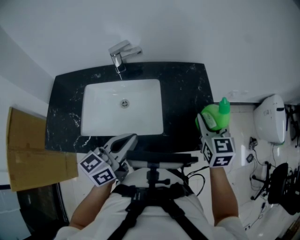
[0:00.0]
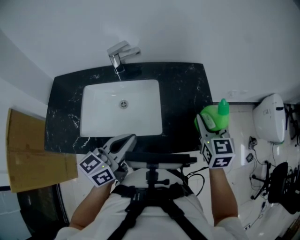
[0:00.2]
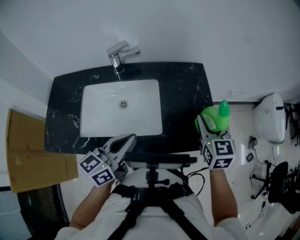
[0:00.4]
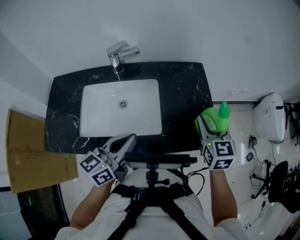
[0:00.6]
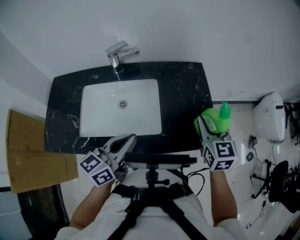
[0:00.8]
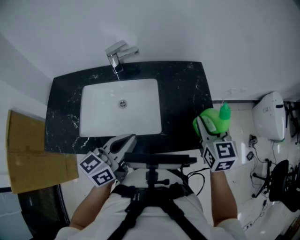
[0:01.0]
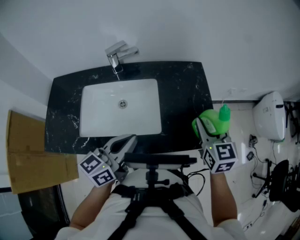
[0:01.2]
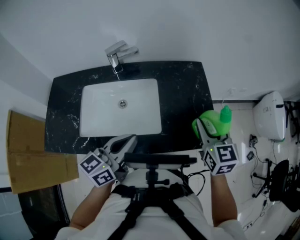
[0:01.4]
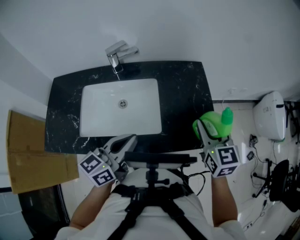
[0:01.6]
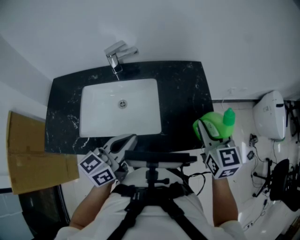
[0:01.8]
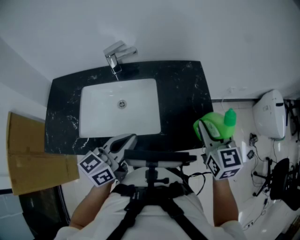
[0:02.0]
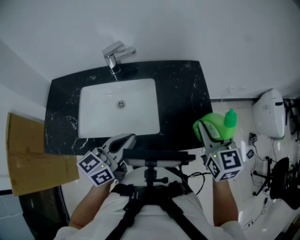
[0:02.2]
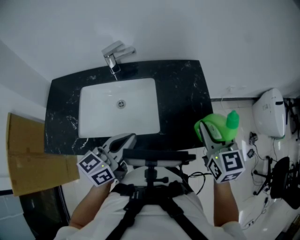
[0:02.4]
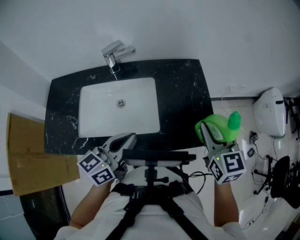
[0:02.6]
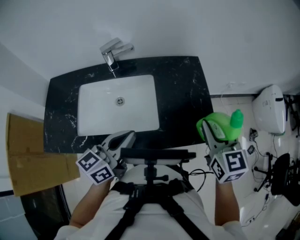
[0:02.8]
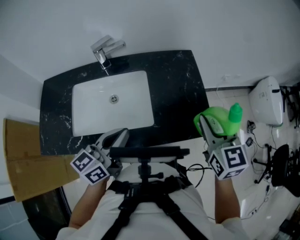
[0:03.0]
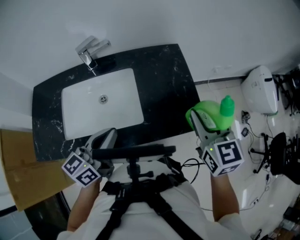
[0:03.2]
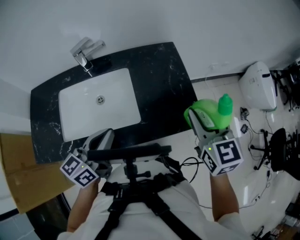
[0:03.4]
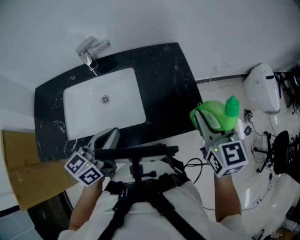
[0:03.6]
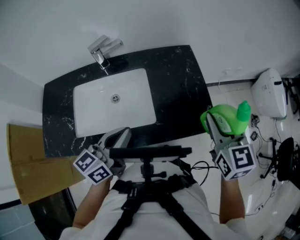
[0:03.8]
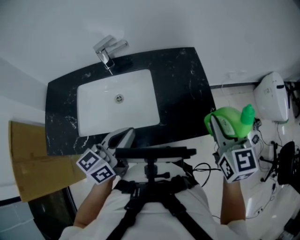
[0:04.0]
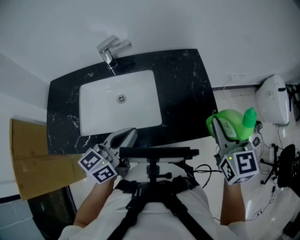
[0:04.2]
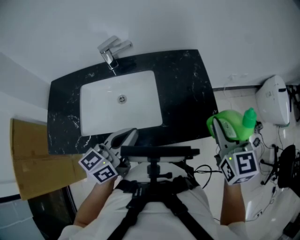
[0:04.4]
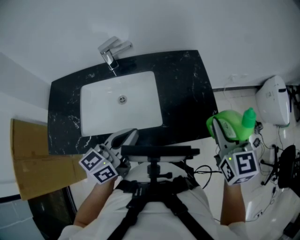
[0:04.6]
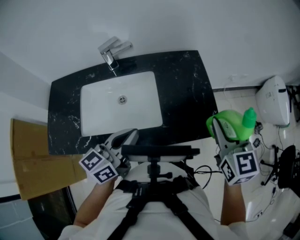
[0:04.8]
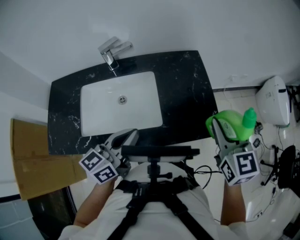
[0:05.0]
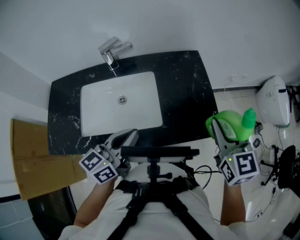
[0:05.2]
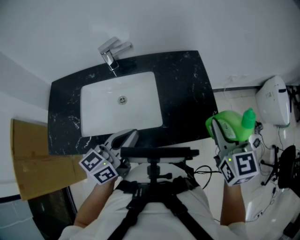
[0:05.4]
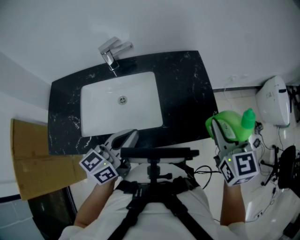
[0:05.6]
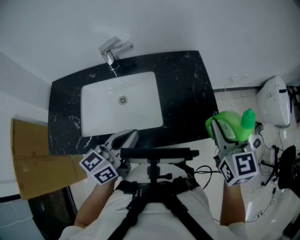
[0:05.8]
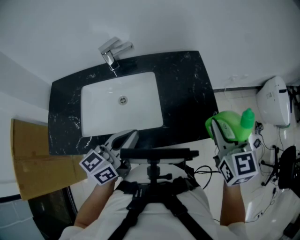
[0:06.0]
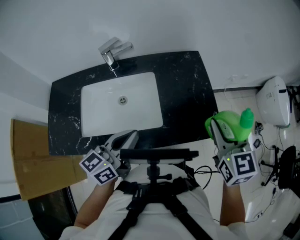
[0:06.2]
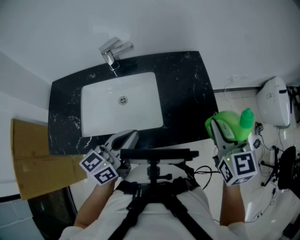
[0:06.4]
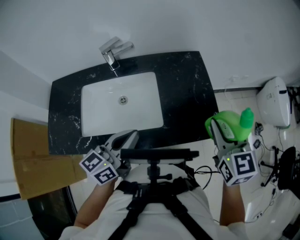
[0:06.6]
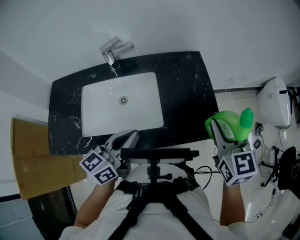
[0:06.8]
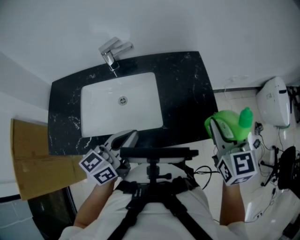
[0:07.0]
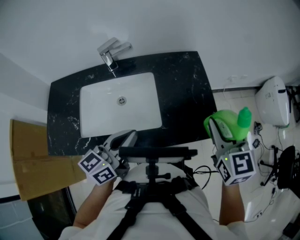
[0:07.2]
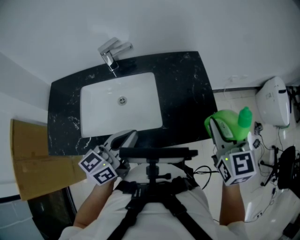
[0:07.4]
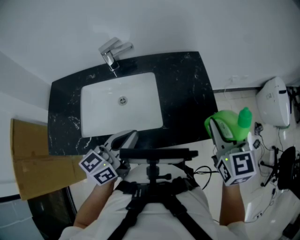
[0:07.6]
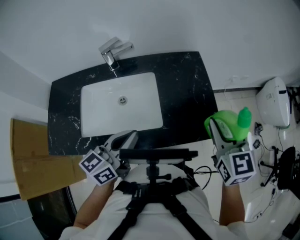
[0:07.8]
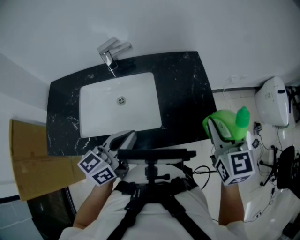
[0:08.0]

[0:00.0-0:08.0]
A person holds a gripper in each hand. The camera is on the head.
0:00.0 to 0:01.6: The grippers move only a little.
0:01.6 to 0:03.2: The right gripper ends up some 5 cm from where it was.
0:03.2 to 0:04.8: The grippers move only a little.
0:04.8 to 0:08.0: Neither gripper changes place.

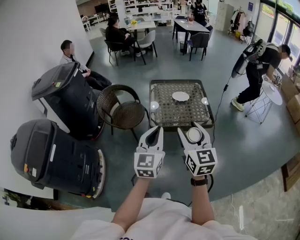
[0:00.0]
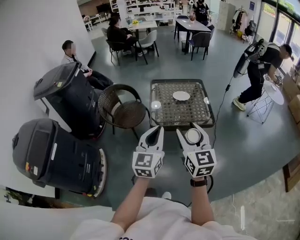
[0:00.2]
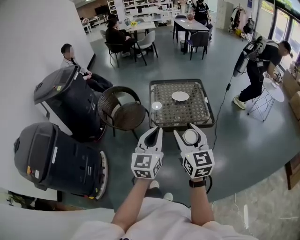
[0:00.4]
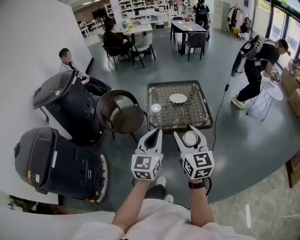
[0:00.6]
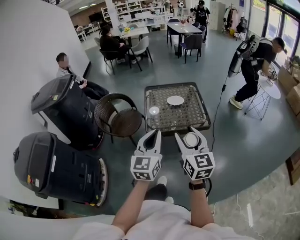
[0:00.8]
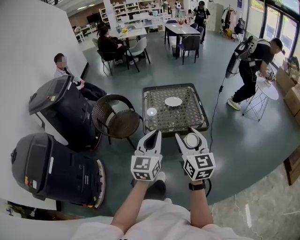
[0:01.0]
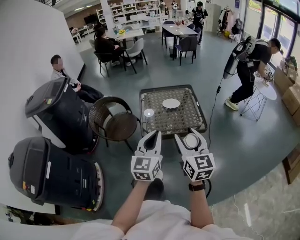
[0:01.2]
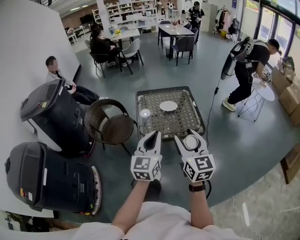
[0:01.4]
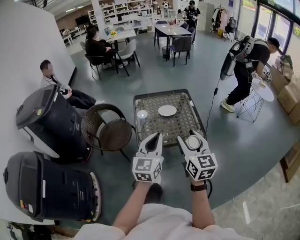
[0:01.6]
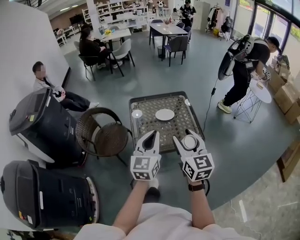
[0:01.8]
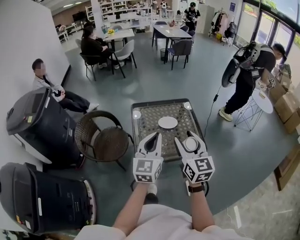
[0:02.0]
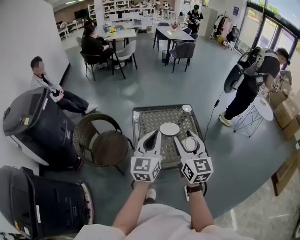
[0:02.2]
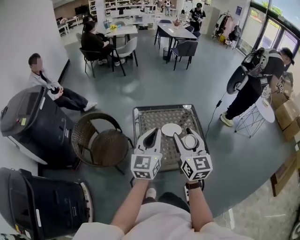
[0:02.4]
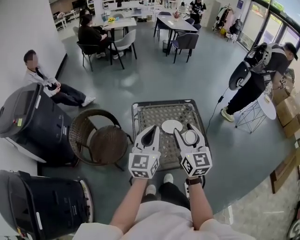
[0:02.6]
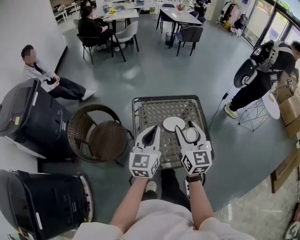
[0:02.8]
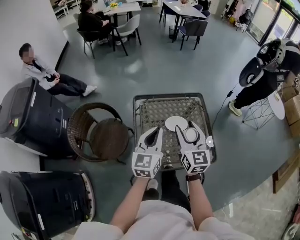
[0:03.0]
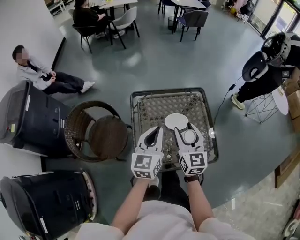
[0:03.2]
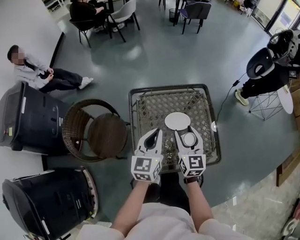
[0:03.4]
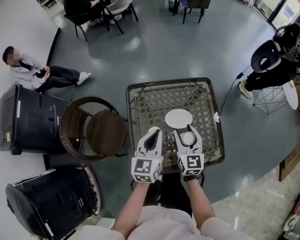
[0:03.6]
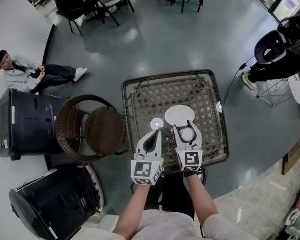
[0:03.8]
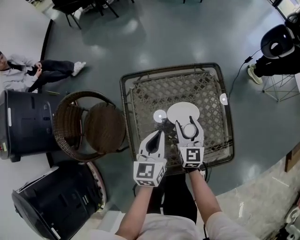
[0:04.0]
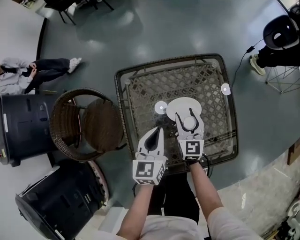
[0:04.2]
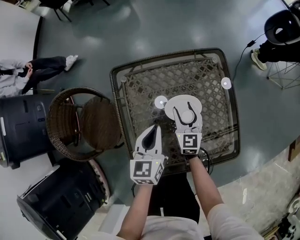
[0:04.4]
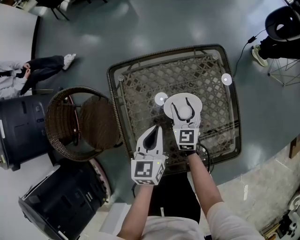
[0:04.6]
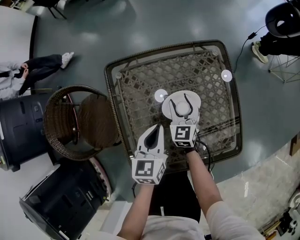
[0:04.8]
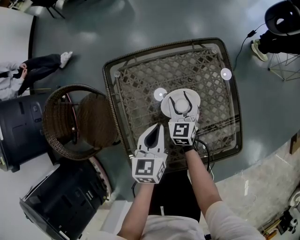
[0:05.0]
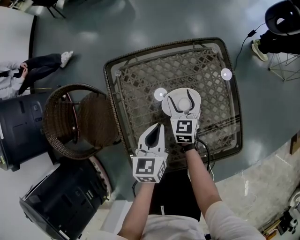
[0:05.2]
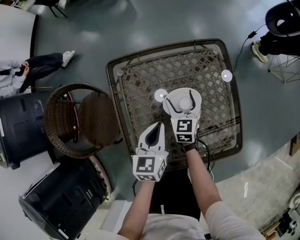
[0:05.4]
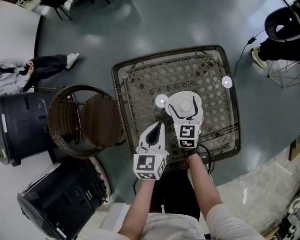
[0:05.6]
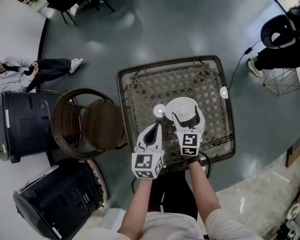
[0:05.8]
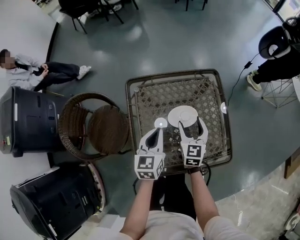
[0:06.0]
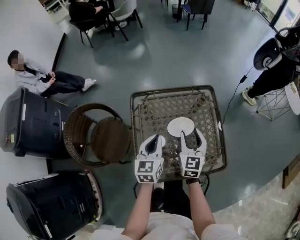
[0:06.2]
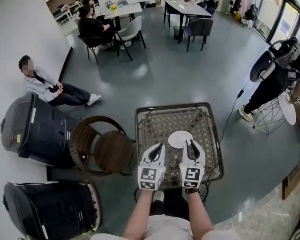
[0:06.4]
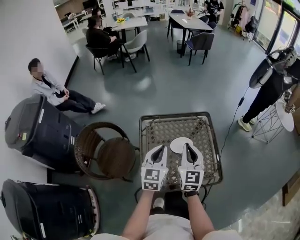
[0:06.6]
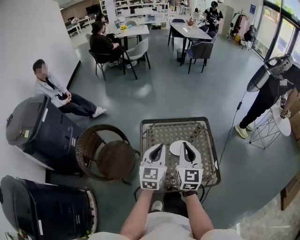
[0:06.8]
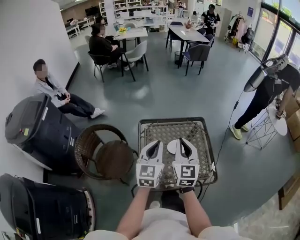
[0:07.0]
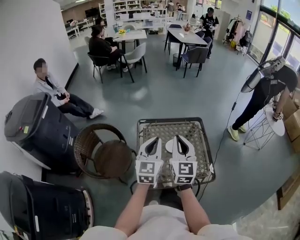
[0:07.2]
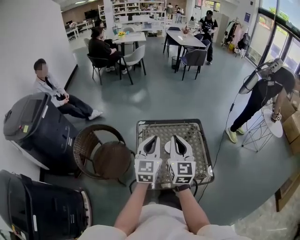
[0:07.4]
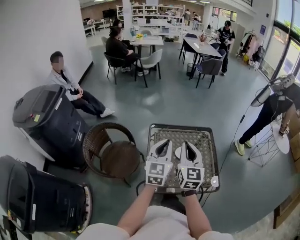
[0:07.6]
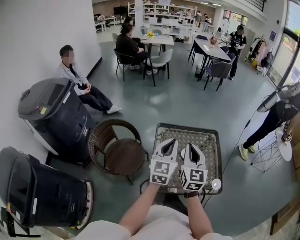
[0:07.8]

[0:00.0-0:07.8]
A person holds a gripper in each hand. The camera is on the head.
0:00.0 to 0:01.6: The grippers both shift forward and to the right by approximately 15 cm.
0:01.6 to 0:03.2: The two grippers go roughly 35 cm forward.
0:03.2 to 0:04.6: The right gripper travels downward and forward by approximately 35 cm; the left gripper moves downward, about 25 cm, and rotates about 20 degrees.
0:04.6 to 0:06.2: The right gripper moves upward and backward, roughly 20 cm, and opens, then closes once more. The left gripper is displaced upward by about 10 cm.
0:06.2 to 0:07.8: The right gripper goes about 30 cm upward, to the left and backward, and closes up. Meanwhile the left gripper goes some 20 cm upward and backward, and rotates roughly 20 degrees.

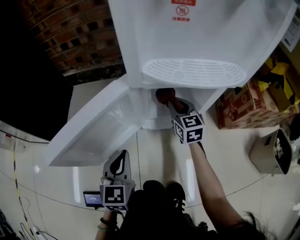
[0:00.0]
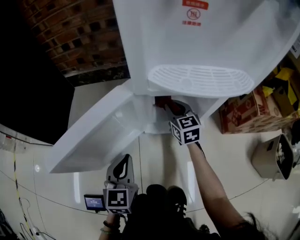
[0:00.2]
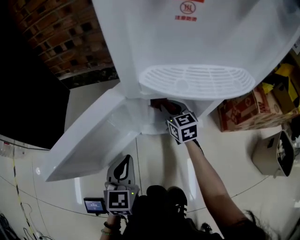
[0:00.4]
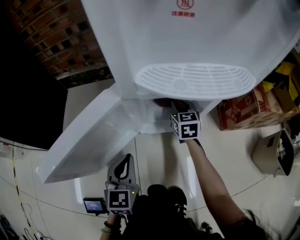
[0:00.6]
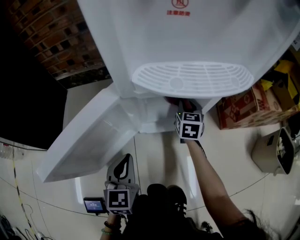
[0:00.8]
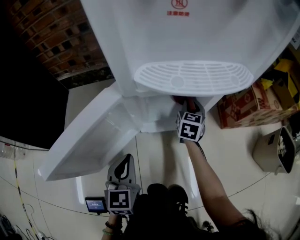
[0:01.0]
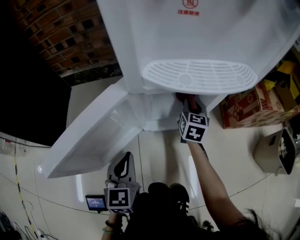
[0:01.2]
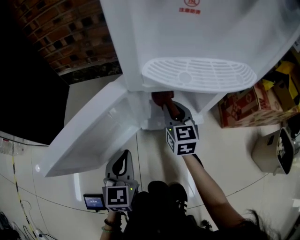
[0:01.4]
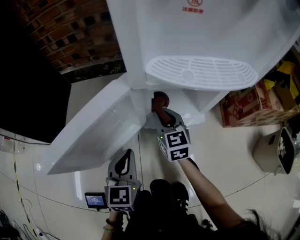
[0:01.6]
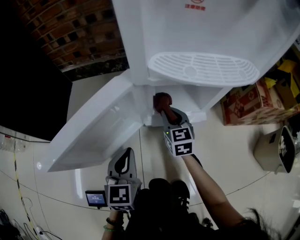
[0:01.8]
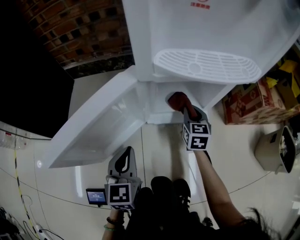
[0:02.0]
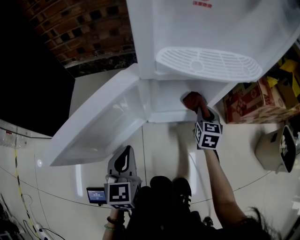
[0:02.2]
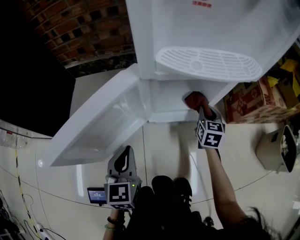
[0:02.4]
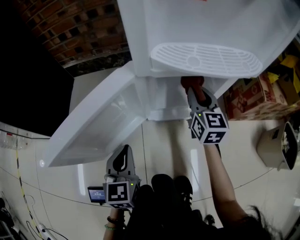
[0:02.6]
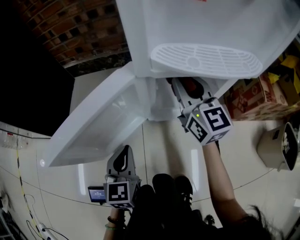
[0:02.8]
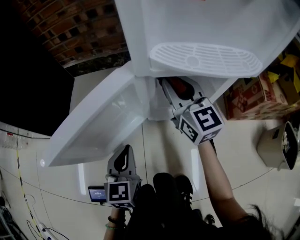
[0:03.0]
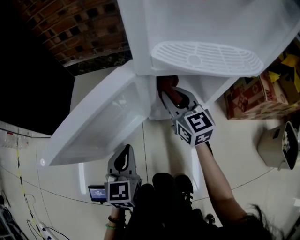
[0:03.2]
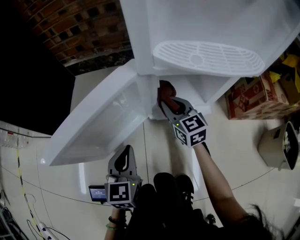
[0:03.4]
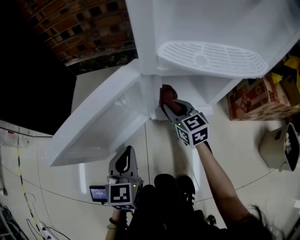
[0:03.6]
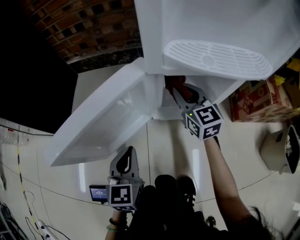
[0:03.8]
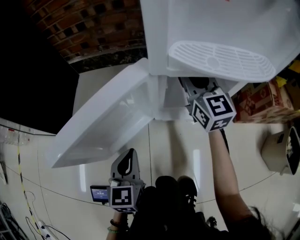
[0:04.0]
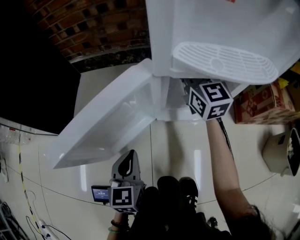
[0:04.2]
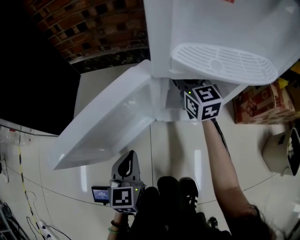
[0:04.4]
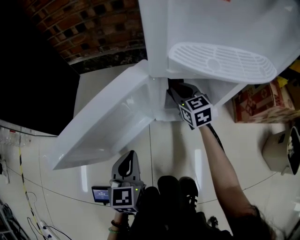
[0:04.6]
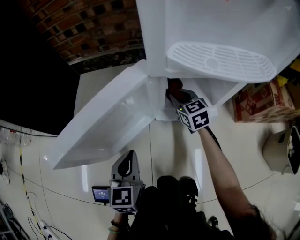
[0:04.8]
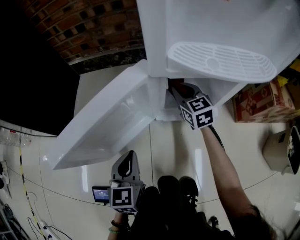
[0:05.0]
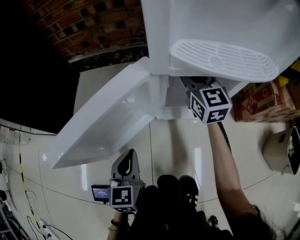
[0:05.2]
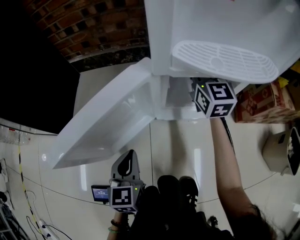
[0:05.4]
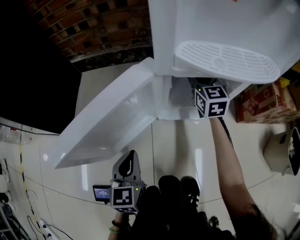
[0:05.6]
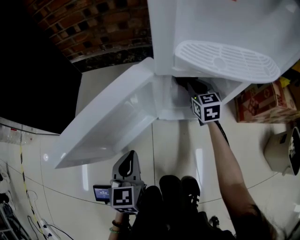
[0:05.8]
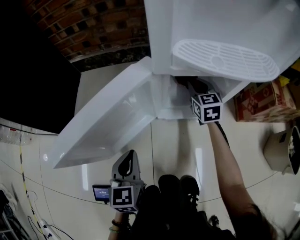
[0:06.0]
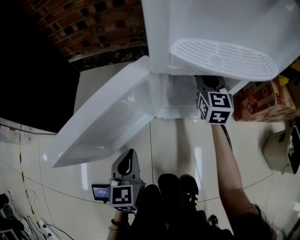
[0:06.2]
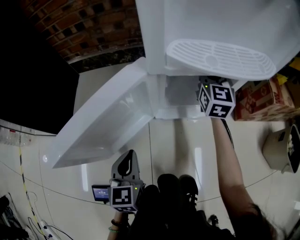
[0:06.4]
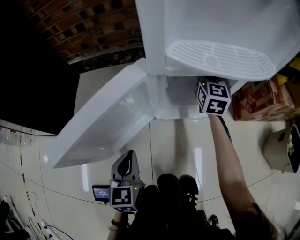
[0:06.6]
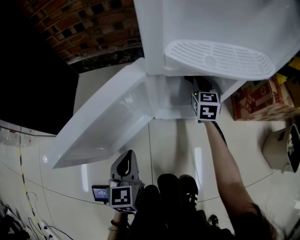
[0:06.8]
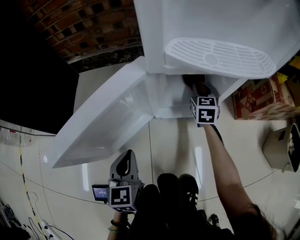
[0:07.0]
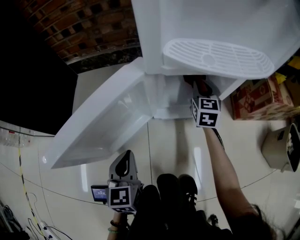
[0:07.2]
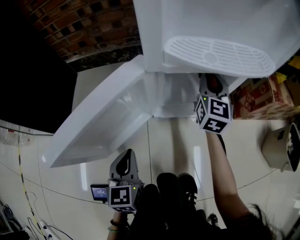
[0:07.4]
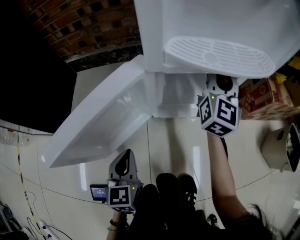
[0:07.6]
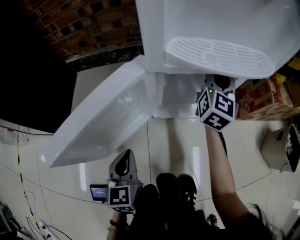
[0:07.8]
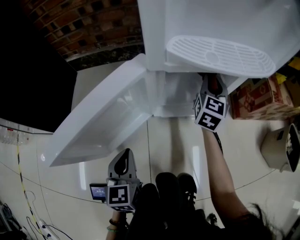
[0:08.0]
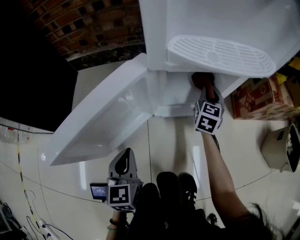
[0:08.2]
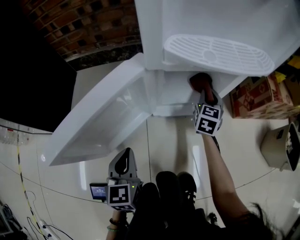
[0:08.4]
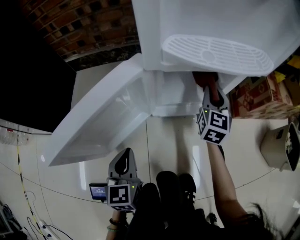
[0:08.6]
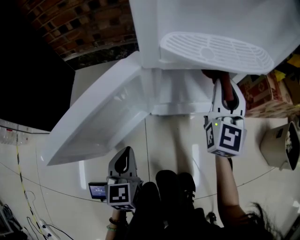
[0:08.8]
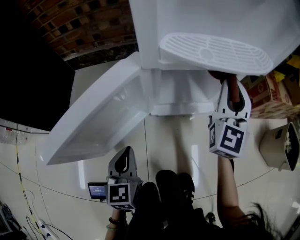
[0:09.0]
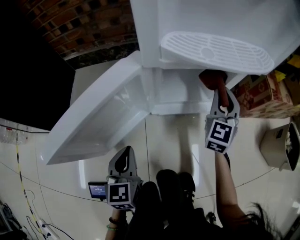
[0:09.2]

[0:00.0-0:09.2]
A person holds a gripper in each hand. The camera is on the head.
0:00.0 to 0:01.6: The right gripper shifts some 5 cm to the left.
0:01.6 to 0:03.0: The right gripper shifts about 15 cm upward, and rotates some 20 degrees.
0:03.0 to 0:04.6: The right gripper goes up and down, roughly 15 cm each way, reversing 2 times, and changes its angle by some 30 degrees.
0:04.6 to 0:06.2: The right gripper moves up and down over some 20 cm, changing direction 2 times, and changes its angle by approximately 30 degrees.
0:06.2 to 0:07.6: The right gripper travels upward by some 10 cm, and changes its angle by some 20 degrees.
0:07.6 to 0:09.2: The right gripper swings up and down, approximately 20 cm each way, with 2 reversals, and turns by some 30 degrees.
